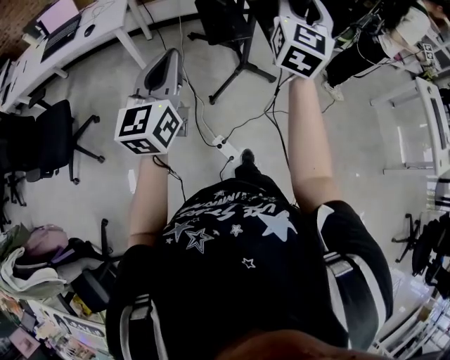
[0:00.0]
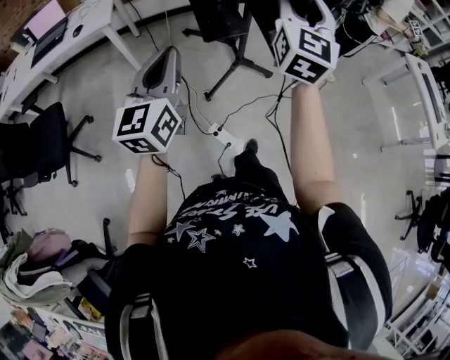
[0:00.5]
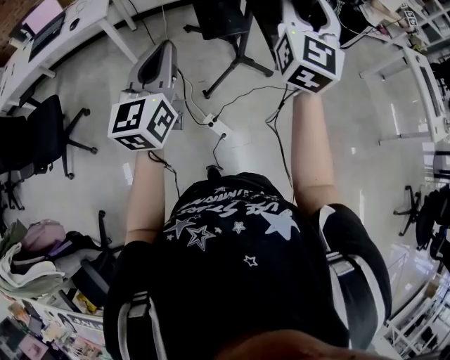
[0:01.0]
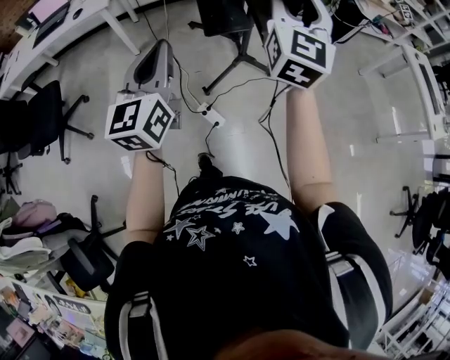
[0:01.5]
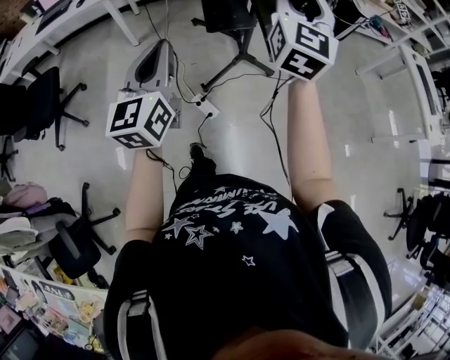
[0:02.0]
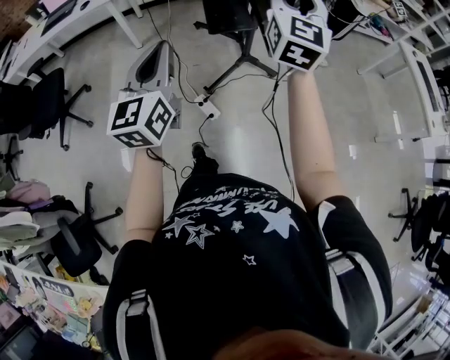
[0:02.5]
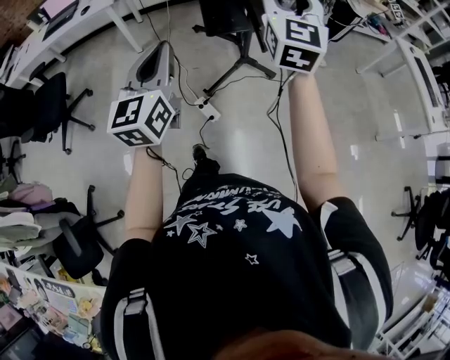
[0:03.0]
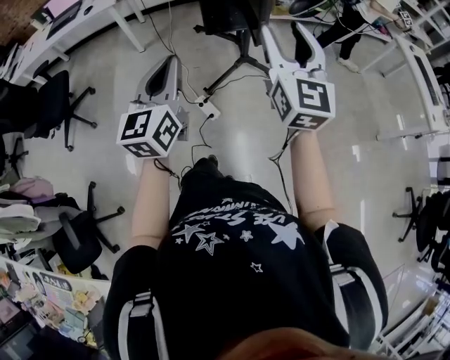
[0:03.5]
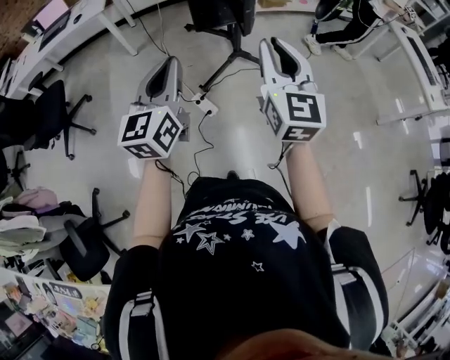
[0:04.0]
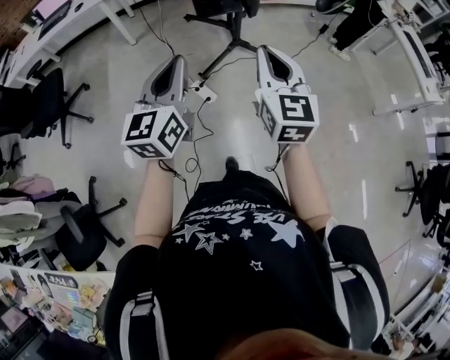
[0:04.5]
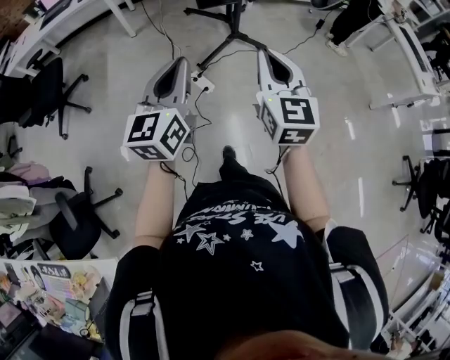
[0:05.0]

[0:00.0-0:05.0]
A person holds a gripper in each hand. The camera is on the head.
0:00.0 to 0:02.5: The two grippers go approximately 30 cm backward and to the right.
0:02.5 to 0:05.0: The left gripper travels backward by some 20 cm. The right gripper is displaced backward by approximately 35 cm, swivels approximately 20 degrees, and closes its fingers.

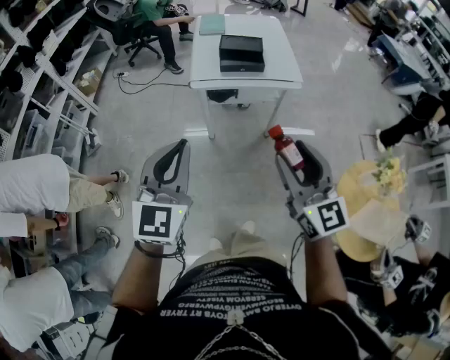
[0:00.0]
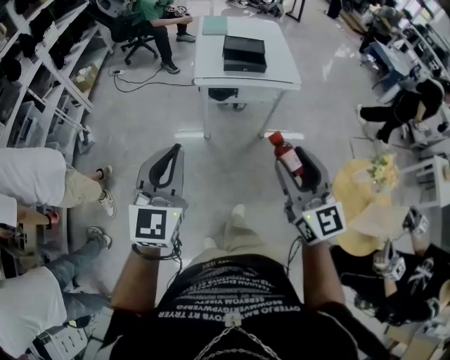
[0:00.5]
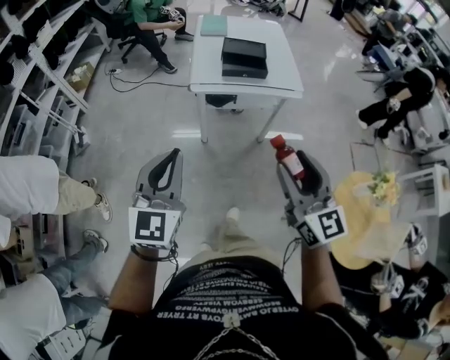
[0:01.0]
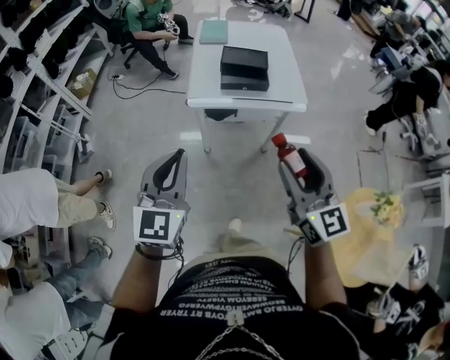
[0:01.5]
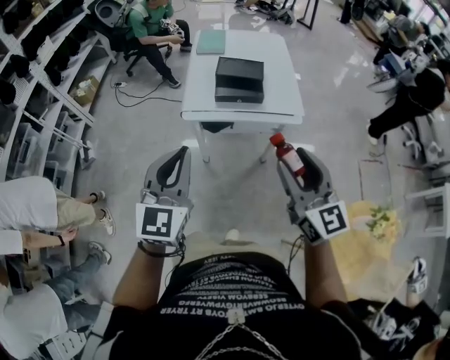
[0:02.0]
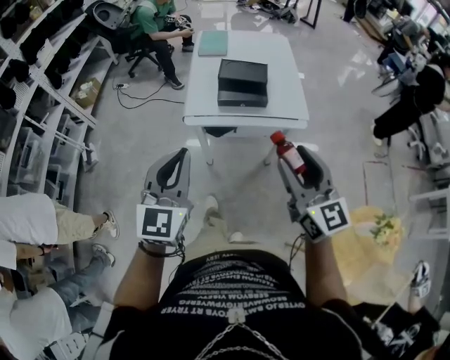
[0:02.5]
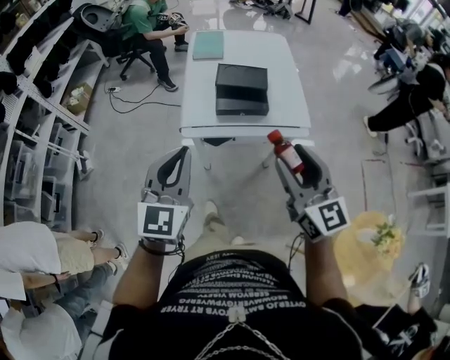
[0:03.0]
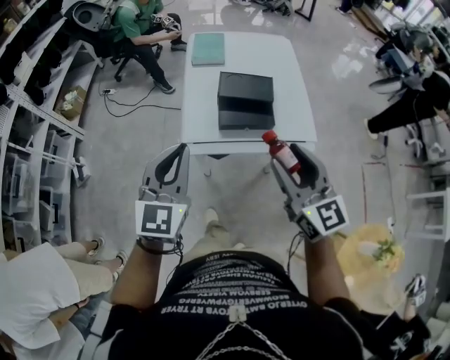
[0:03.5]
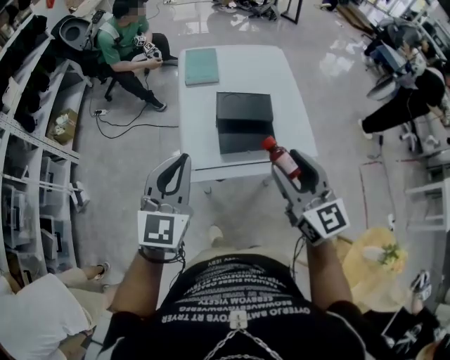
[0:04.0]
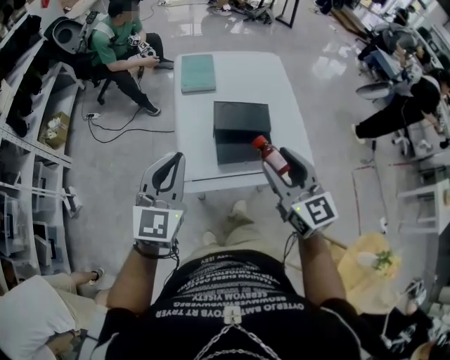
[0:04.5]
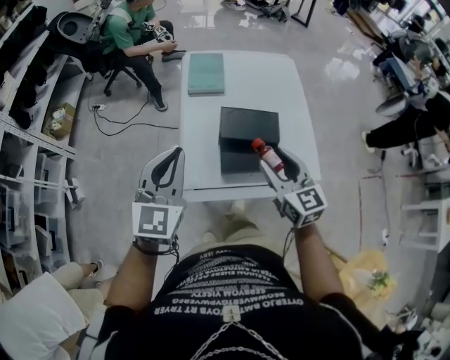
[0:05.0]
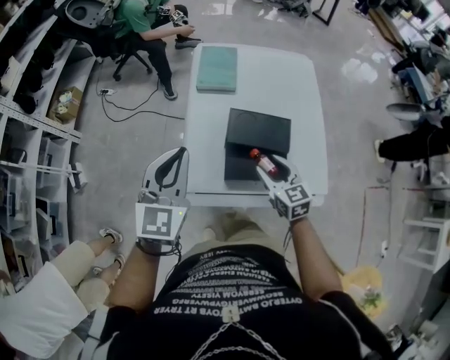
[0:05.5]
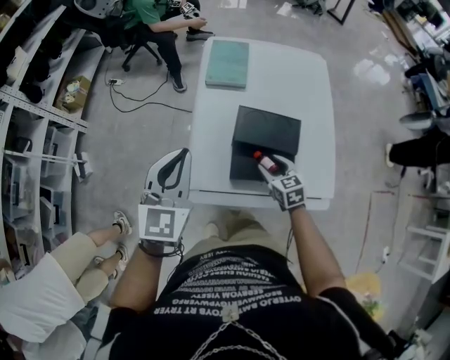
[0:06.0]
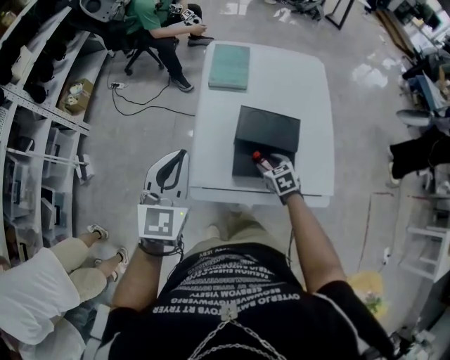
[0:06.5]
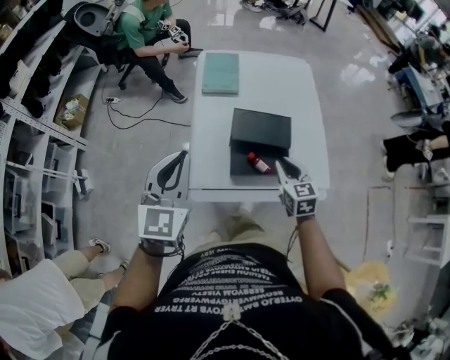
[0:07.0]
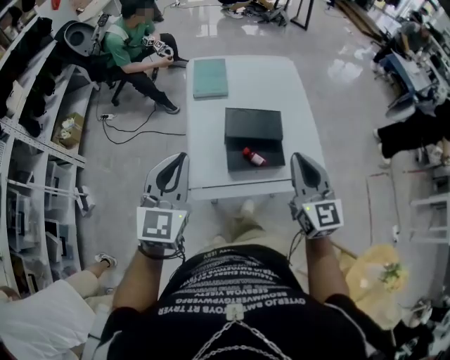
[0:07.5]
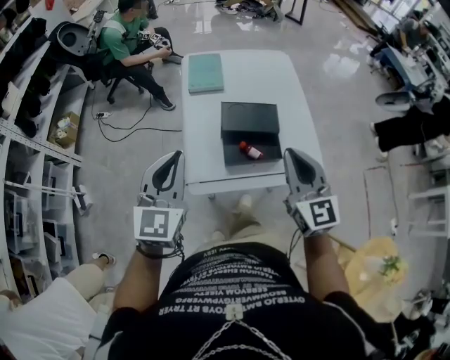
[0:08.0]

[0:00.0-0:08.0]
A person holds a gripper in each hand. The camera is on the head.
0:00.0 to 0:02.0: The grippers both shift forward by approximately 20 cm.
0:02.0 to 0:04.0: Both grippers move forward, approximately 30 cm.
0:04.0 to 0:06.0: The left gripper heads forward, covering about 15 cm, while the right gripper heads downward and forward, covering some 40 cm, and angles its fingers downward, by about 40 degrees.
0:06.0 to 0:08.0: The right gripper travels upward and backward by roughly 35 cm, tips its fingers upward by about 40 degrees, and closes. Meanwhile the left gripper goes some 10 cm backward and upward.

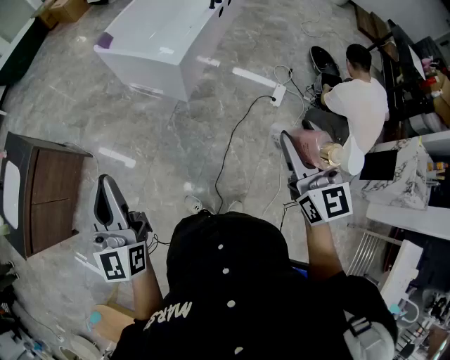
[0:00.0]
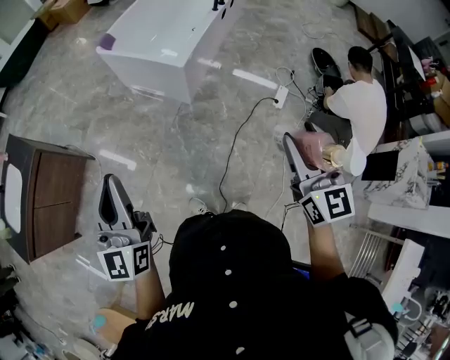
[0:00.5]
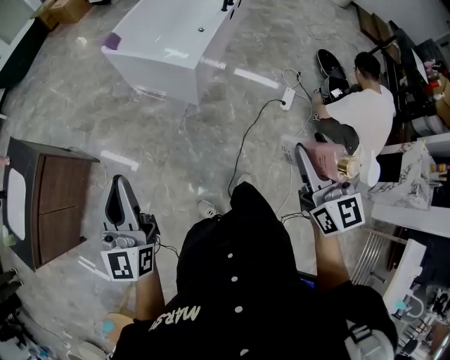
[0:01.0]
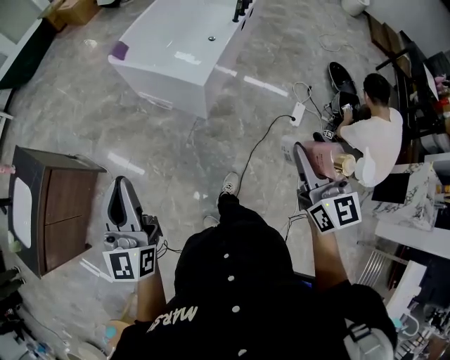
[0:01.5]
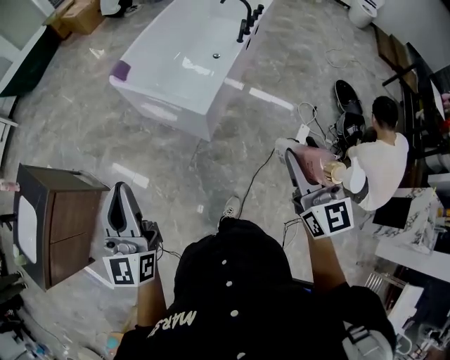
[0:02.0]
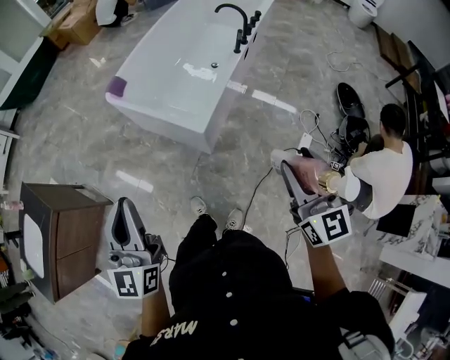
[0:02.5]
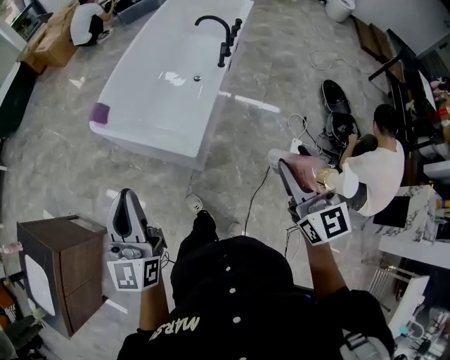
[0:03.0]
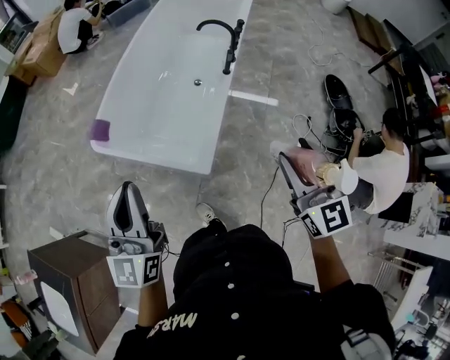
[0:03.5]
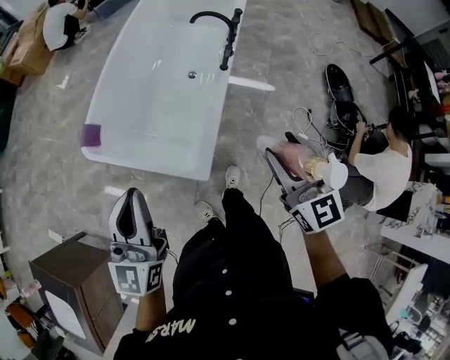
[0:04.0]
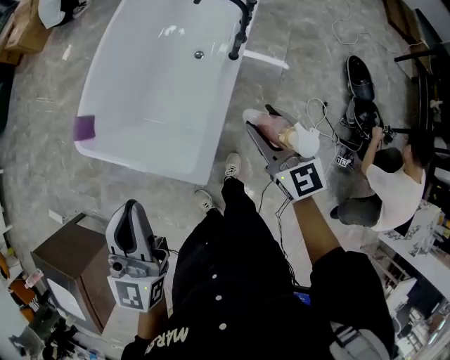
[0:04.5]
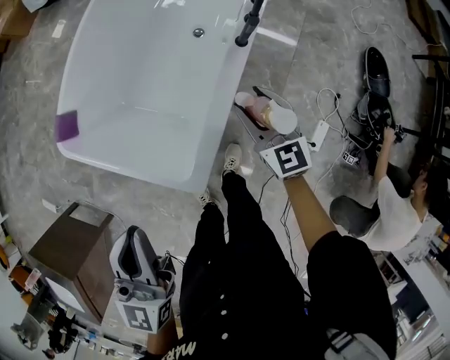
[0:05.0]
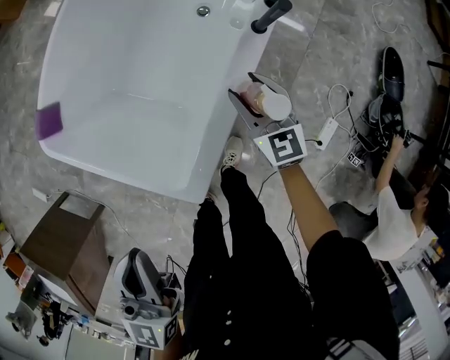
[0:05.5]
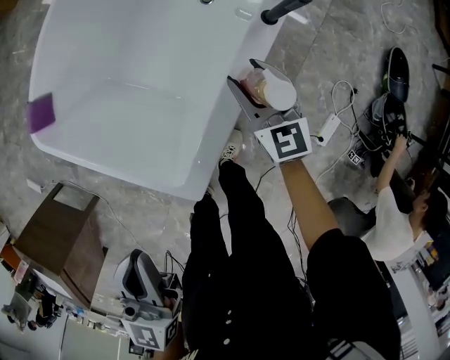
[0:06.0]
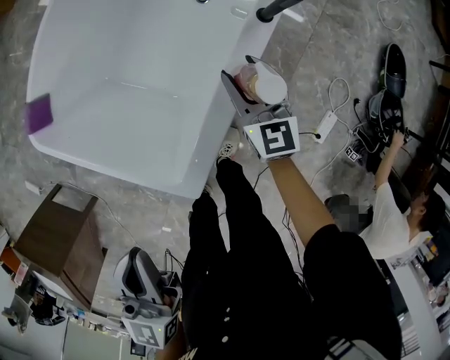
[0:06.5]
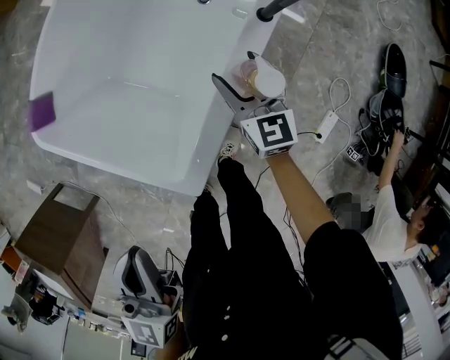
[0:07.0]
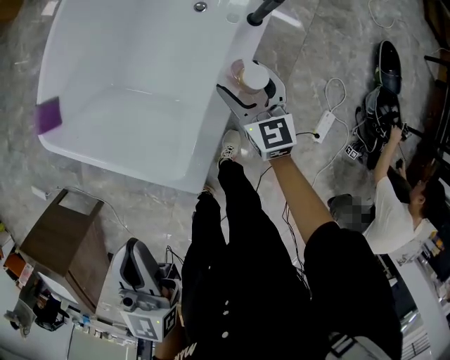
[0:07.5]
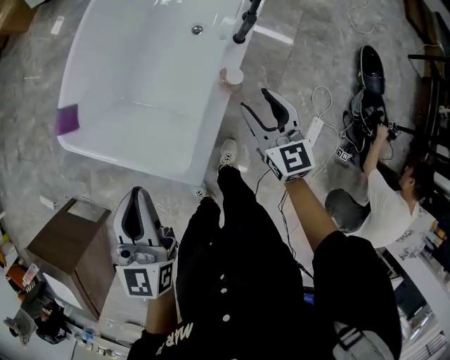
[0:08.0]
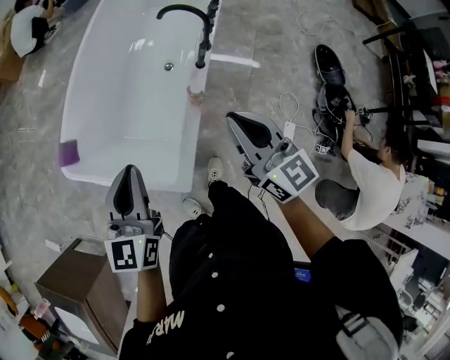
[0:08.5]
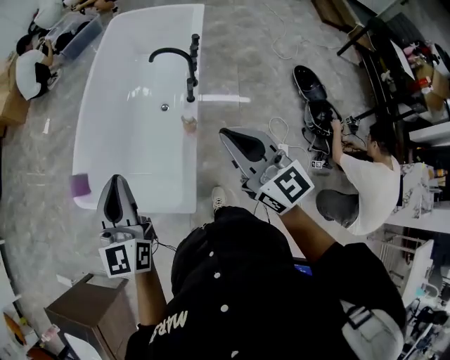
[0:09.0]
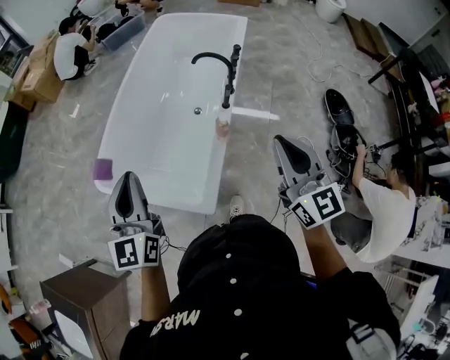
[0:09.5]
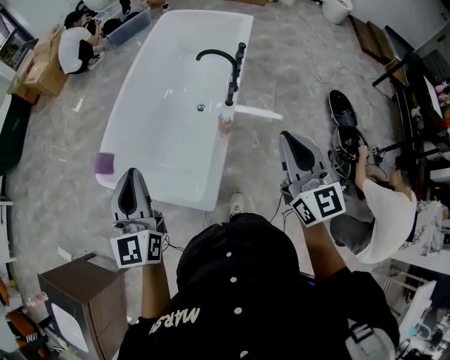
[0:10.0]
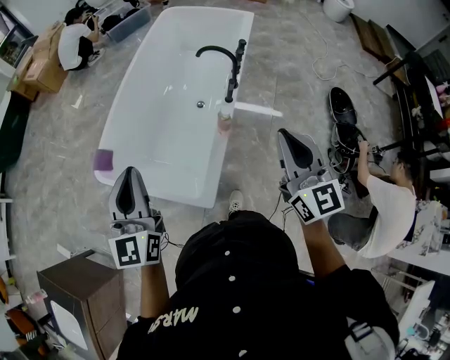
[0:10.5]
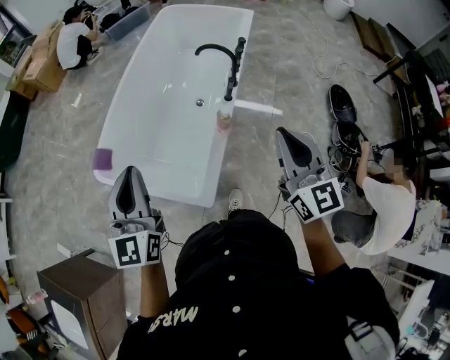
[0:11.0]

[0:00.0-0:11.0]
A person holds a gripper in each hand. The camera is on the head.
0:00.0 to 0:02.0: The two grippers go approximately 25 cm forward.
0:02.0 to 0:03.5: The two grippers go roughly 30 cm forward.
0:03.5 to 0:05.5: The right gripper goes approximately 60 cm downward and forward, and changes its angle by some 20 degrees; the left gripper moves downward, forward and to the right, roughly 35 cm, and swivels about 30 degrees.
0:05.5 to 0:07.5: The right gripper opens up.
0:07.5 to 0:09.0: The left gripper goes roughly 20 cm upward, and changes its angle by roughly 20 degrees; the right gripper shifts roughly 50 cm upward and backward, turns by roughly 20 degrees, and closes up.
0:09.0 to 0:11.0: The left gripper moves to the left, roughly 5 cm.

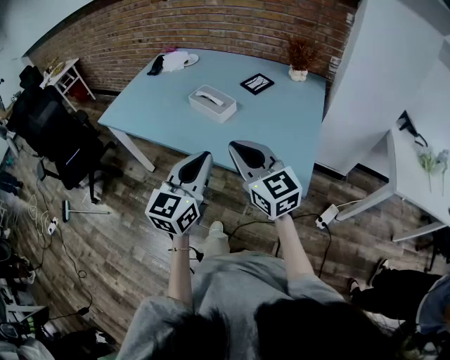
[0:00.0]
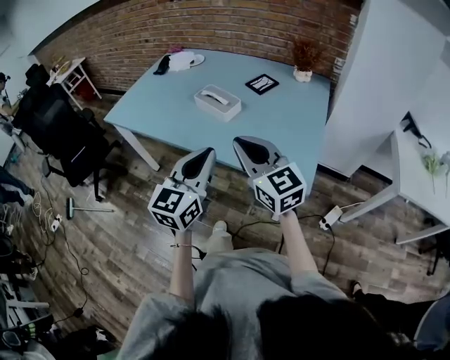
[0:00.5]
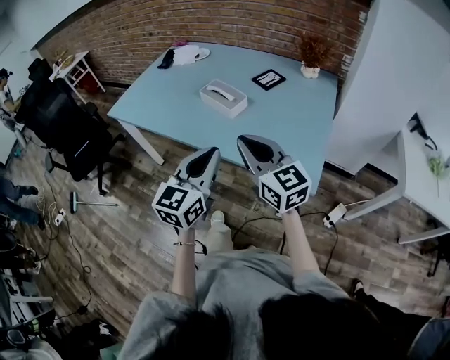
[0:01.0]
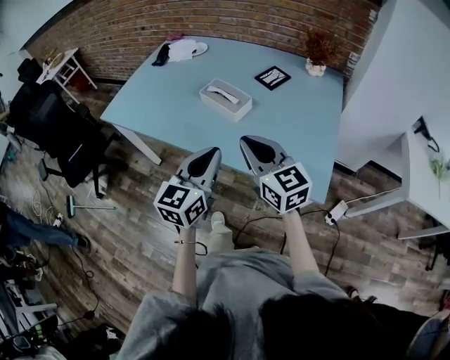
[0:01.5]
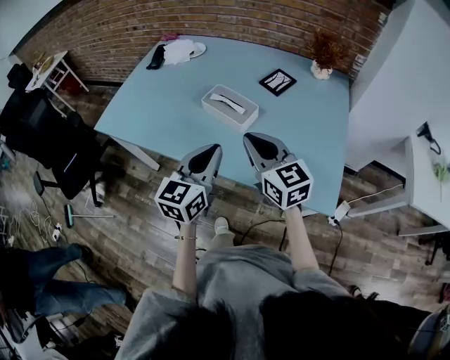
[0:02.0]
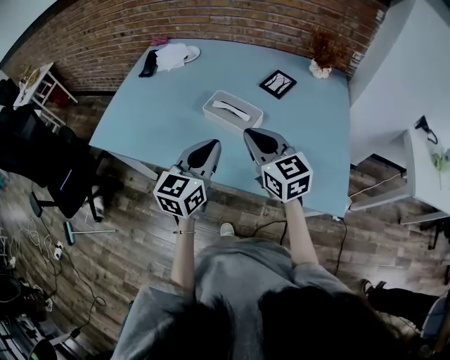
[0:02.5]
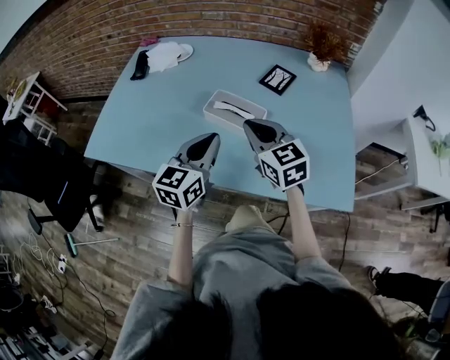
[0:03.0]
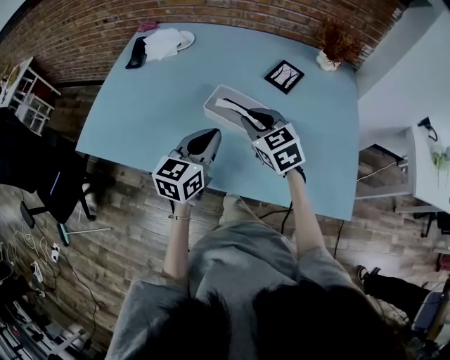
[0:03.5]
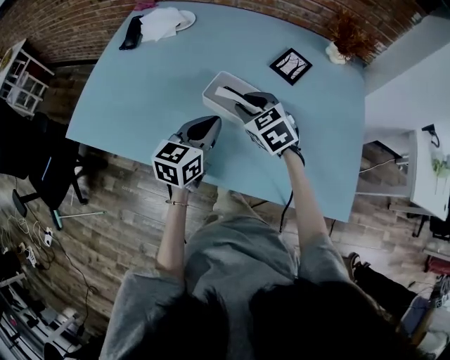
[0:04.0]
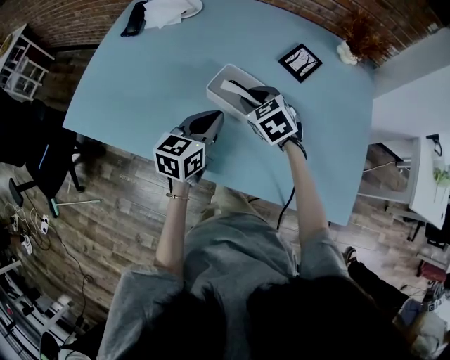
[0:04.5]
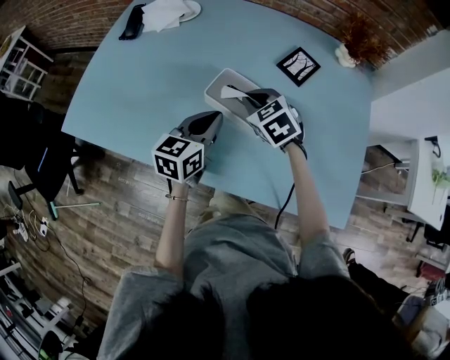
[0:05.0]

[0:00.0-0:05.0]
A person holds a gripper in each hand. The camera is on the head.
0:00.0 to 0:02.5: The right gripper is displaced forward by about 25 cm, while the left gripper travels forward and to the left by about 25 cm.
0:02.5 to 0:05.0: The two grippers go roughly 20 cm forward and downward. The right gripper tilts its fingers about 40 degrees downward, and opens, then closes once more.
